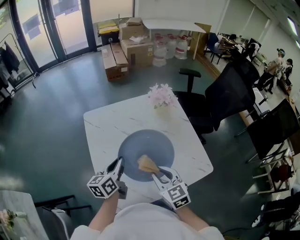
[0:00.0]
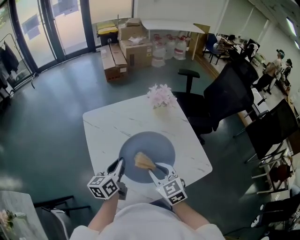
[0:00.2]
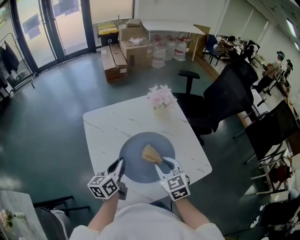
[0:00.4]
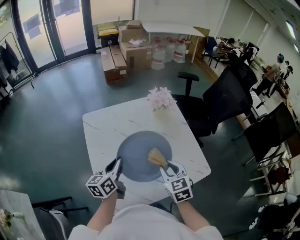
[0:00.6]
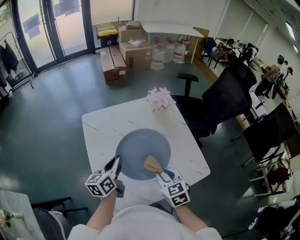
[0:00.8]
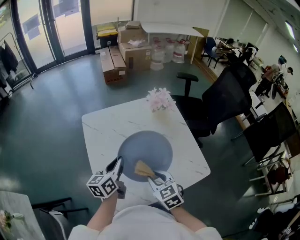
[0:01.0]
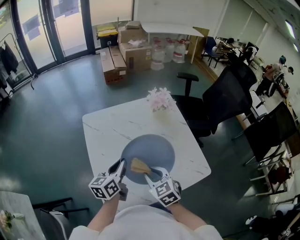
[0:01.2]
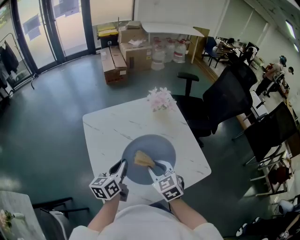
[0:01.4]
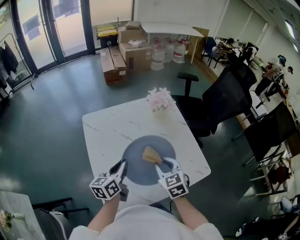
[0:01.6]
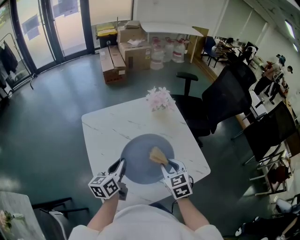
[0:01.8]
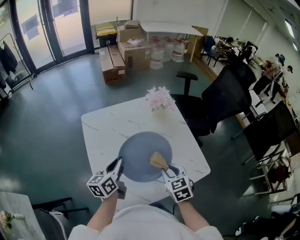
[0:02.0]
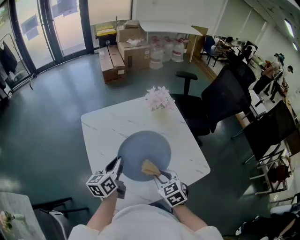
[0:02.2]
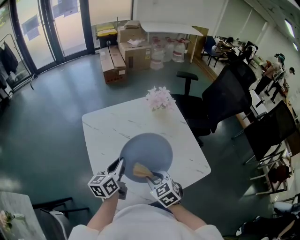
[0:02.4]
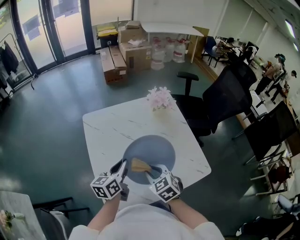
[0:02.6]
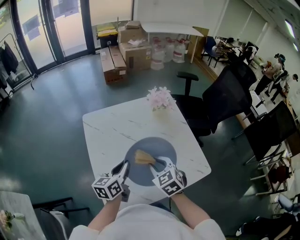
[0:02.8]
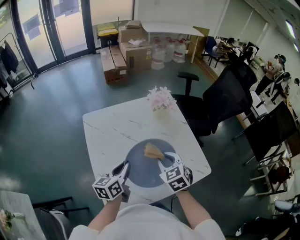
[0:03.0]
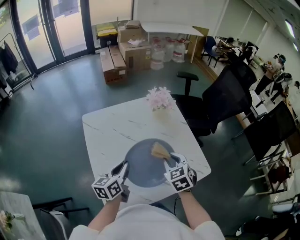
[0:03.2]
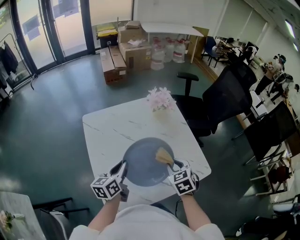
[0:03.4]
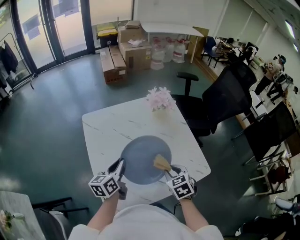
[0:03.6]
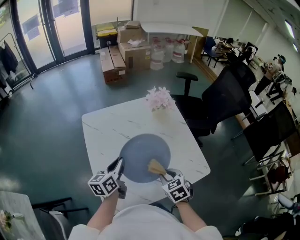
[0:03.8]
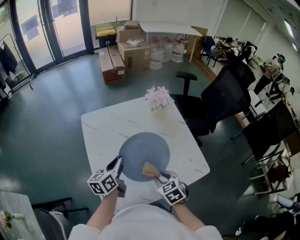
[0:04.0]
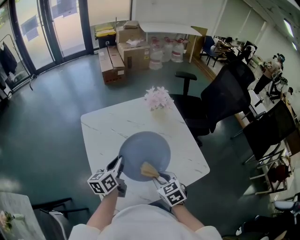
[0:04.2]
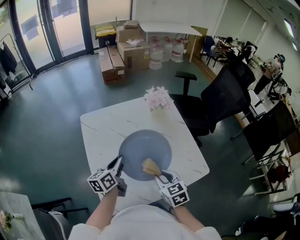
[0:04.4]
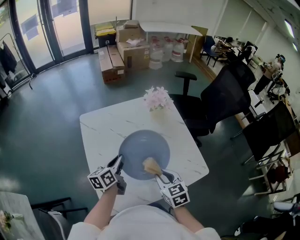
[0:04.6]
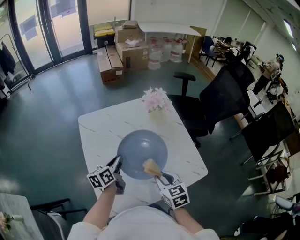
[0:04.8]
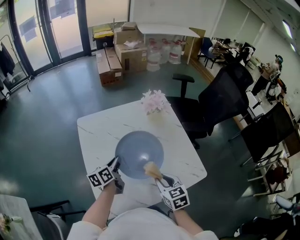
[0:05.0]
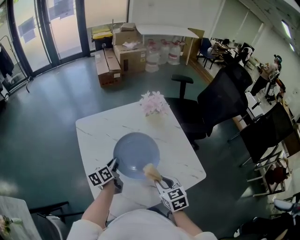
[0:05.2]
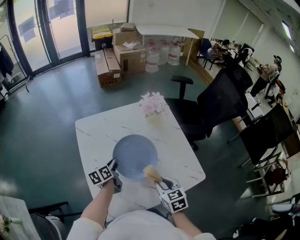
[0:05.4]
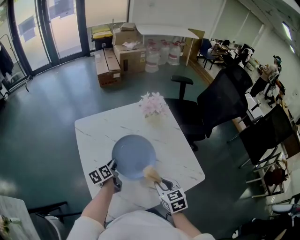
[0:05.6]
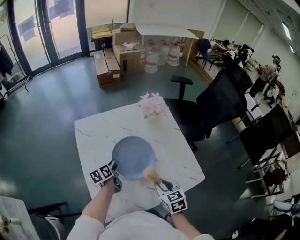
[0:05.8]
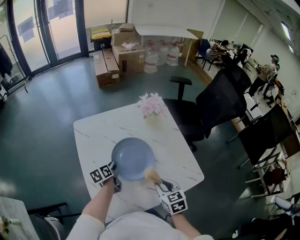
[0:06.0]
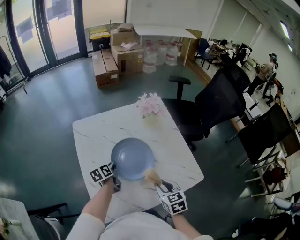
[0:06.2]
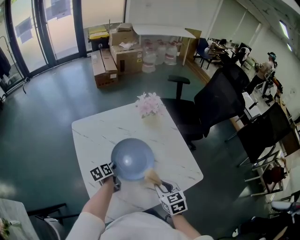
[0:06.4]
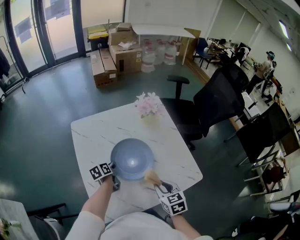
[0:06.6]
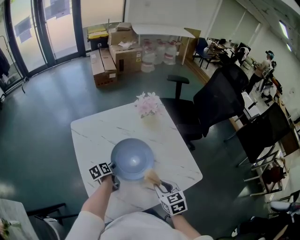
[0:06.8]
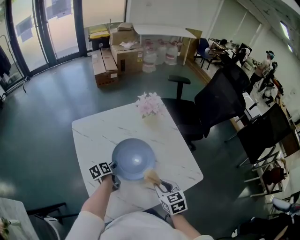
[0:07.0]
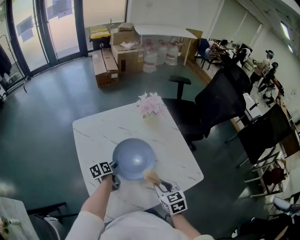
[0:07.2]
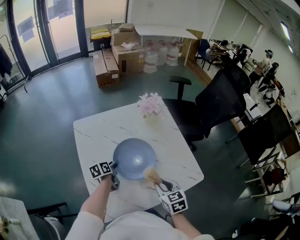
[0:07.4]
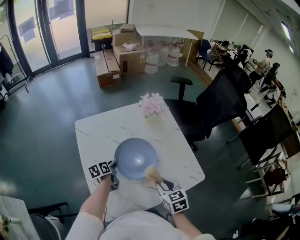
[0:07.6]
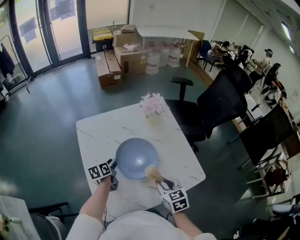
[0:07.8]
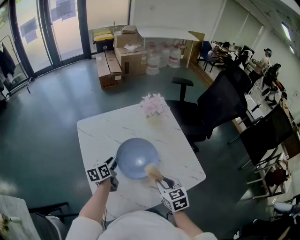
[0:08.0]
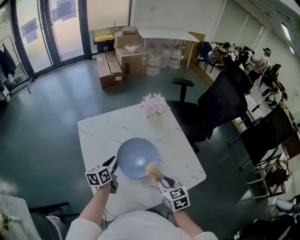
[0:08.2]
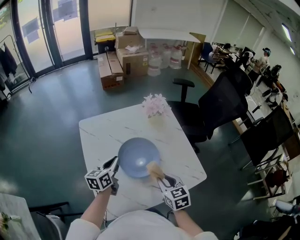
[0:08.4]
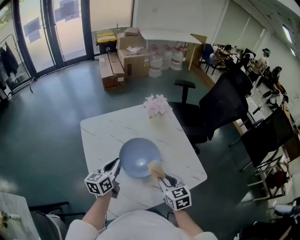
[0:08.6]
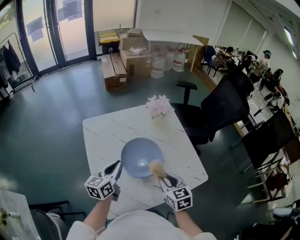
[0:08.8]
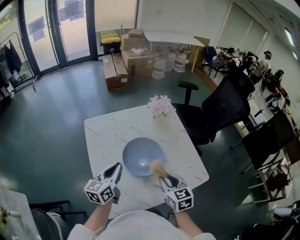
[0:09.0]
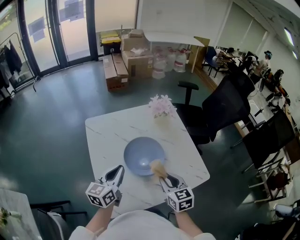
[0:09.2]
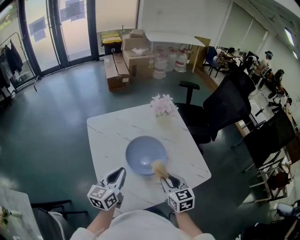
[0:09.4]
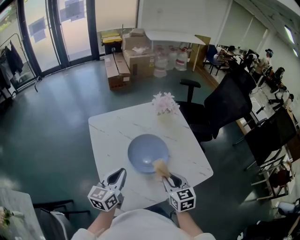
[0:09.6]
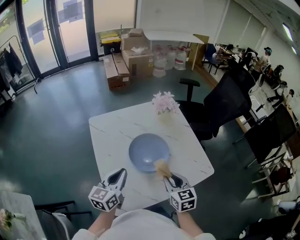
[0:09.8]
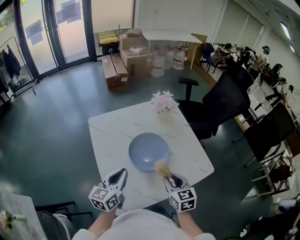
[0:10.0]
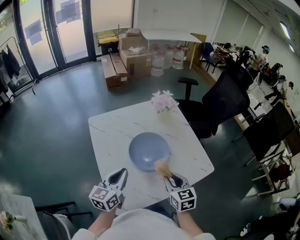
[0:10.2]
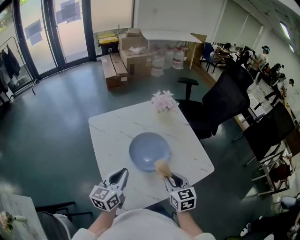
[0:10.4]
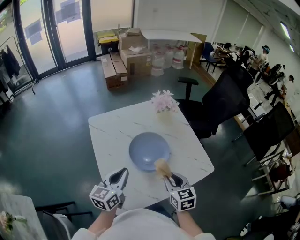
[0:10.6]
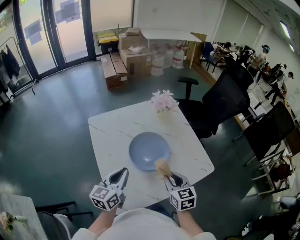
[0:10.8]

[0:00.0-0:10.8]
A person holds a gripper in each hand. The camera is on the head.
0:00.0 to 0:01.6: The right gripper goes left and right, some 5 cm each way, reversing 2 times.
0:01.6 to 0:03.0: The right gripper travels to the left and back again, roughly 5 cm each way.
0:03.0 to 0:04.6: The right gripper moves backward, approximately 5 cm. The left gripper changes place by approximately 5 cm.
0:04.6 to 0:06.2: The left gripper shifts roughly 15 cm downward, and changes its angle by approximately 20 degrees.
0:06.2 to 0:07.8: The left gripper opens.
0:07.8 to 0:09.2: The left gripper is displaced upward and backward by roughly 20 cm, rotates roughly 40 degrees, and closes, while the right gripper ends up roughly 5 cm from where it was.
0:09.2 to 0:10.8: The grippers stay close to where they were, moving slightly.

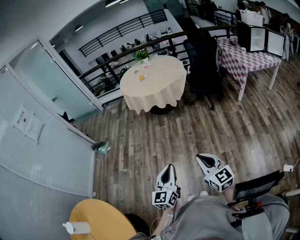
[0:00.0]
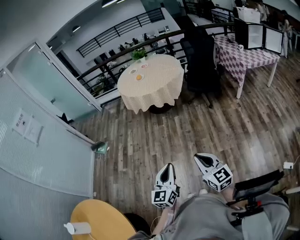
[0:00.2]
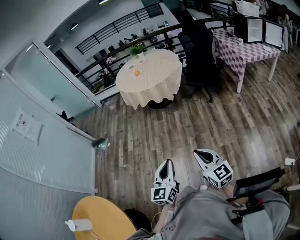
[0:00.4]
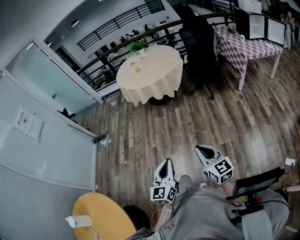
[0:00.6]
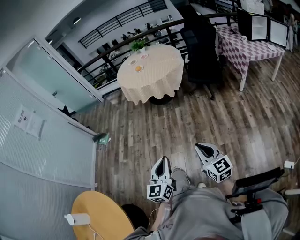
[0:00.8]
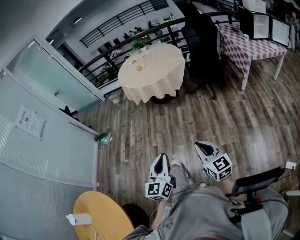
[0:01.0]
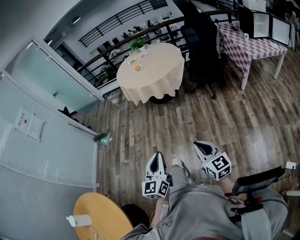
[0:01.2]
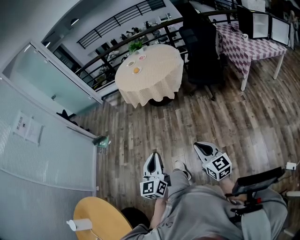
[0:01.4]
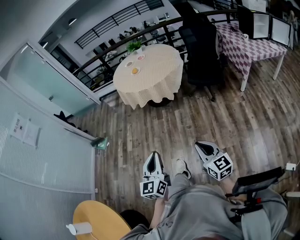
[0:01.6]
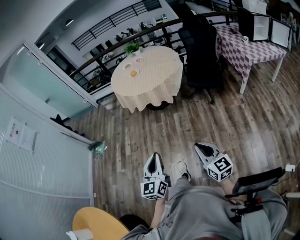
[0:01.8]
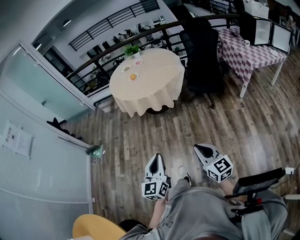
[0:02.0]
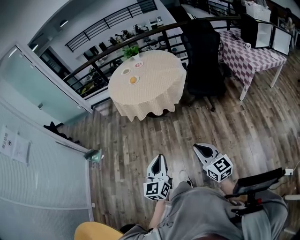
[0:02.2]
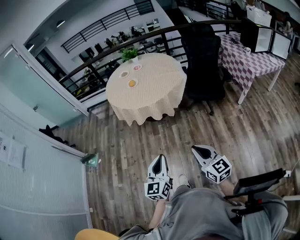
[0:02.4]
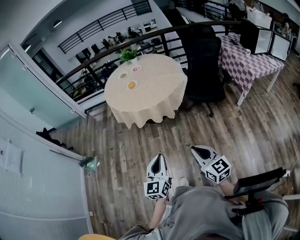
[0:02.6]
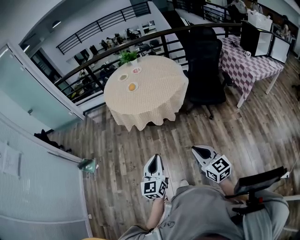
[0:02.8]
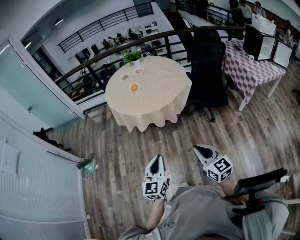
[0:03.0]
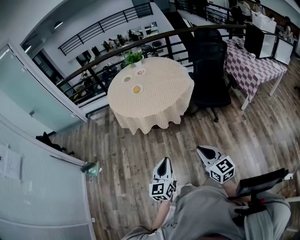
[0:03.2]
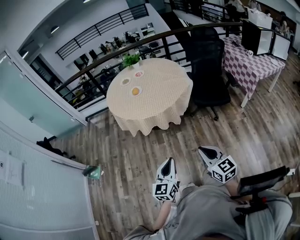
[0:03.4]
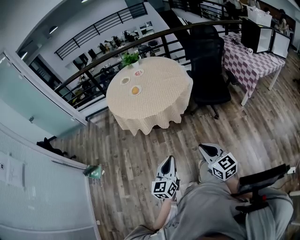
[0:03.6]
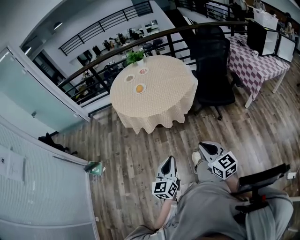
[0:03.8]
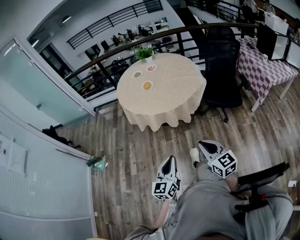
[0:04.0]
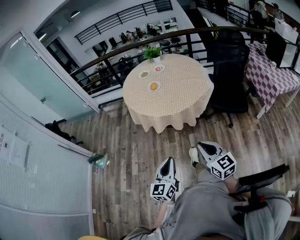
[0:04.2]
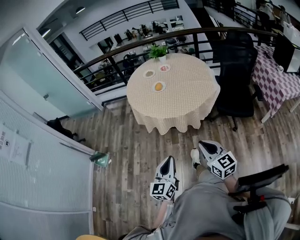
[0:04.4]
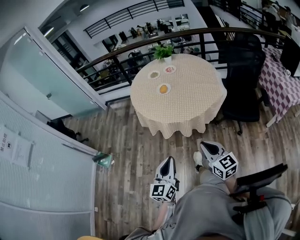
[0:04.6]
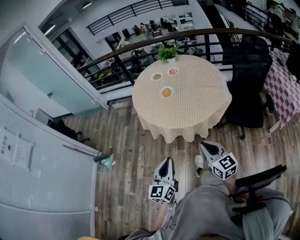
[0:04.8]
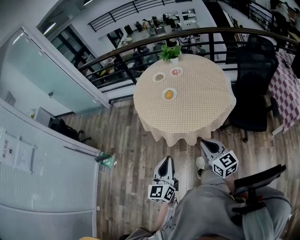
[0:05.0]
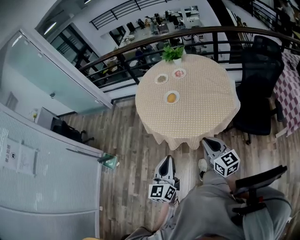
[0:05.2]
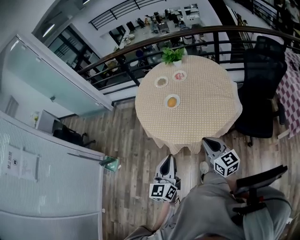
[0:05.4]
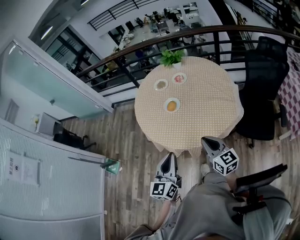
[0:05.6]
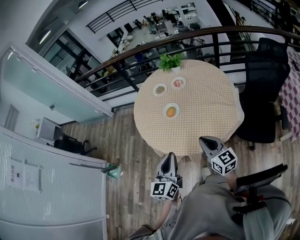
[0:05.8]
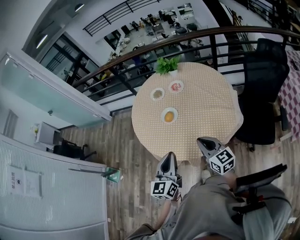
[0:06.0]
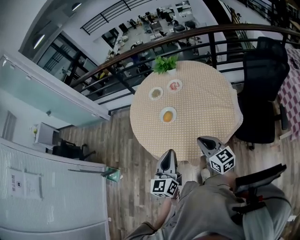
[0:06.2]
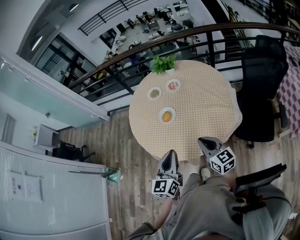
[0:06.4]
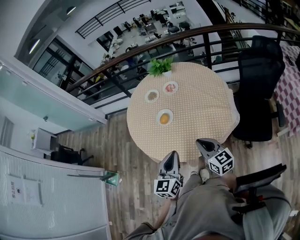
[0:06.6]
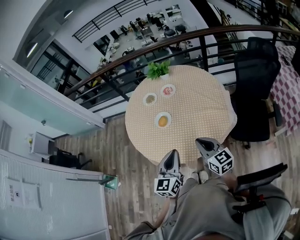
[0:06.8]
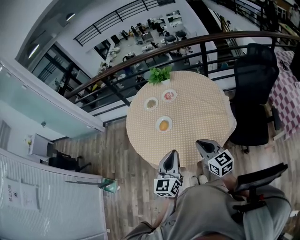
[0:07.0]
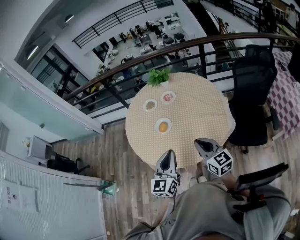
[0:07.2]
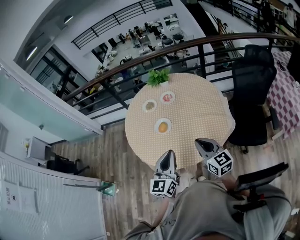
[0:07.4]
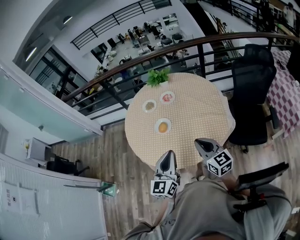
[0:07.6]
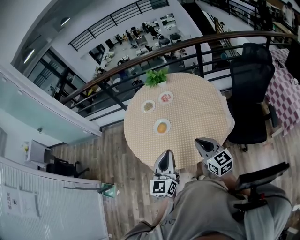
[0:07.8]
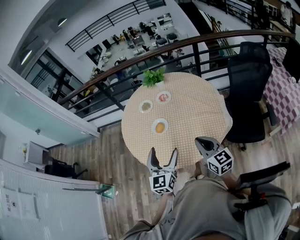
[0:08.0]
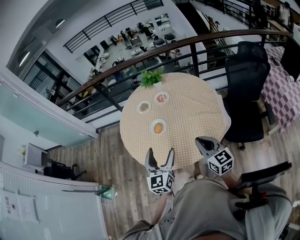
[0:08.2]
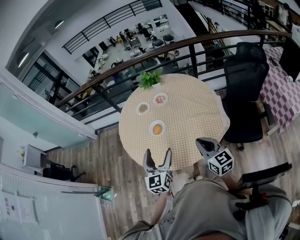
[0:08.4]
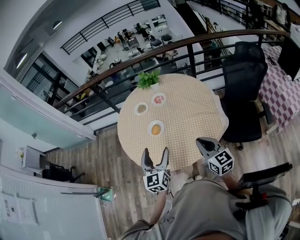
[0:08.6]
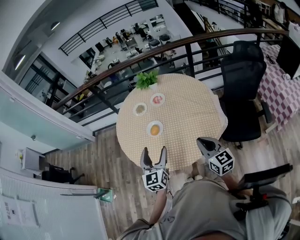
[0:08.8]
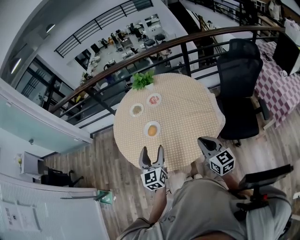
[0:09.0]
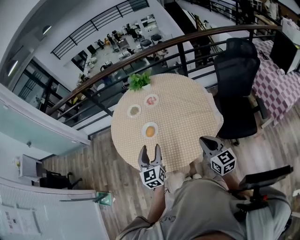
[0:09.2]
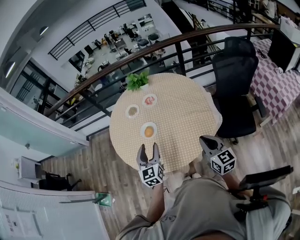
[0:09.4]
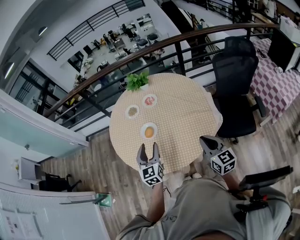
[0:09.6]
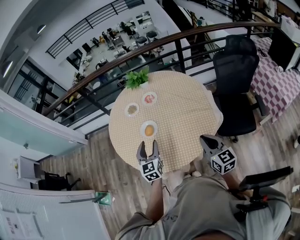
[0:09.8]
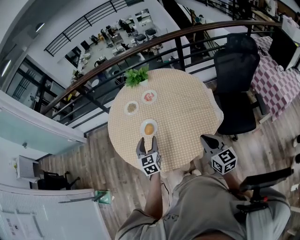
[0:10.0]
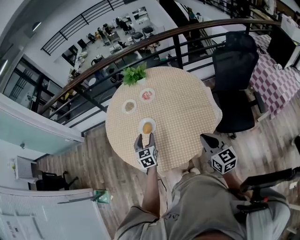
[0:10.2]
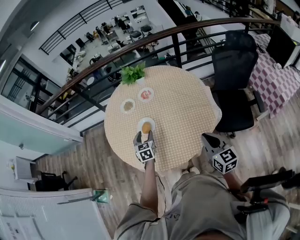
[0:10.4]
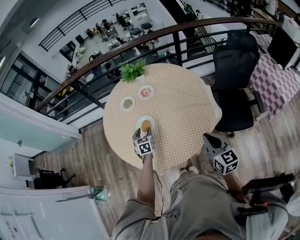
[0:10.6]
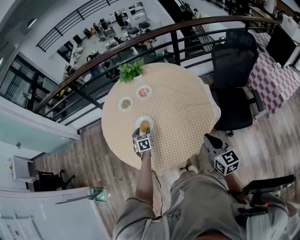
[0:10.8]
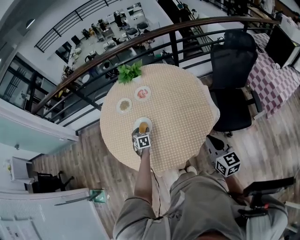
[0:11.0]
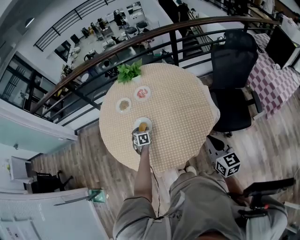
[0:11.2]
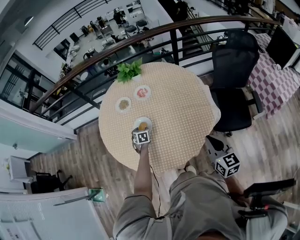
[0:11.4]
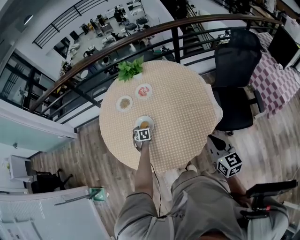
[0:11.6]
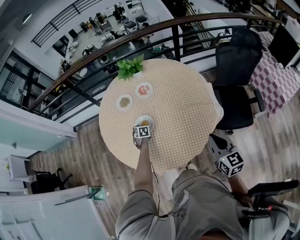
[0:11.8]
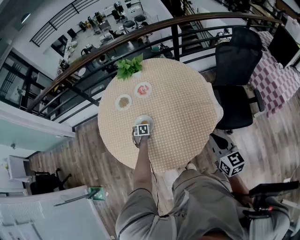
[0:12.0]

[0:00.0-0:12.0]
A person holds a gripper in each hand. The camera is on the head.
0:00.0 to 0:01.6: The right gripper moves forward and to the right, some 15 cm. The left gripper travels forward by about 15 cm.
0:01.6 to 0:03.0: The left gripper shifts roughly 35 cm forward, while the right gripper heads forward and to the left, covering about 35 cm.
0:03.0 to 0:04.4: The grippers both shift forward by some 15 cm.
0:04.4 to 0:06.0: The pair of grippers is taken forward, roughly 40 cm.
0:06.0 to 0:07.6: The left gripper moves some 5 cm.
0:07.6 to 0:09.0: The left gripper moves forward and downward, roughly 10 cm, and opens; the right gripper goes about 5 cm to the right.
0:09.0 to 0:10.4: The left gripper moves downward and forward, some 20 cm, and swivels some 30 degrees.
0:10.4 to 0:12.0: The left gripper goes some 25 cm downward and forward, and points its fingers some 30 degrees further downward.

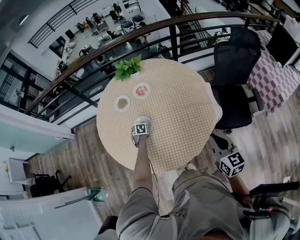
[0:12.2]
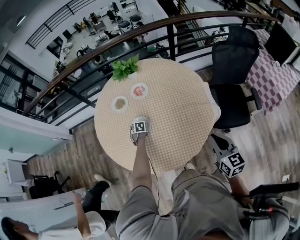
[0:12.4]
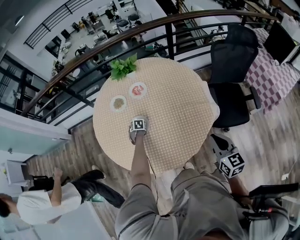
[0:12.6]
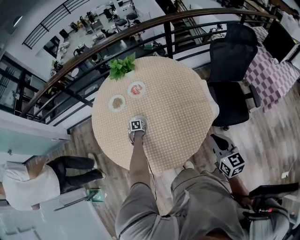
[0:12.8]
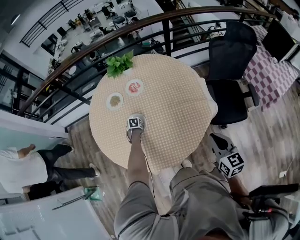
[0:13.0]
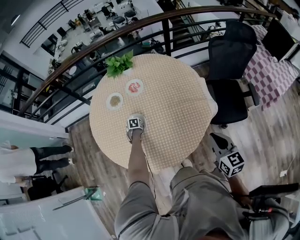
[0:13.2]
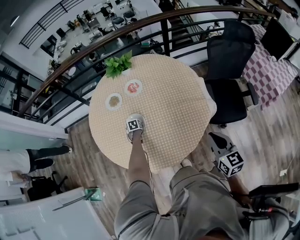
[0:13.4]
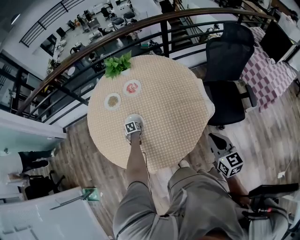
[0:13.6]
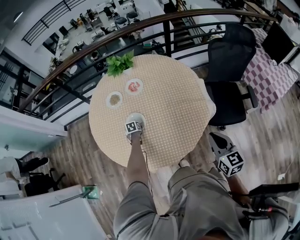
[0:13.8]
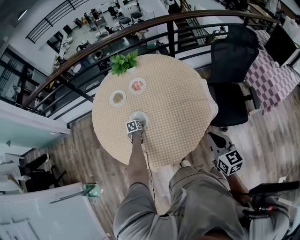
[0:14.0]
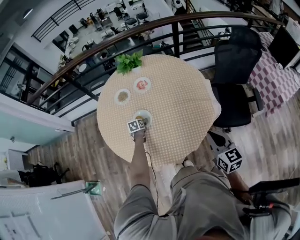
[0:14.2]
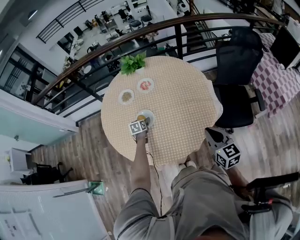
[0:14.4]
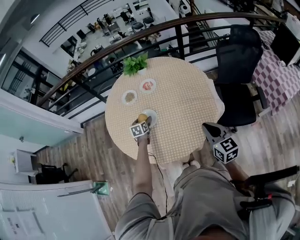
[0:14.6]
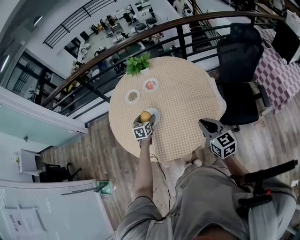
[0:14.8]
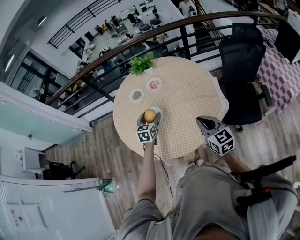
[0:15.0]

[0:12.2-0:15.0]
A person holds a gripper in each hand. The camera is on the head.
0:12.2 to 0:13.6: The grippers move only a little.
0:13.6 to 0:15.0: The right gripper heads to the left, covering approximately 10 cm, while the left gripper moves upward, some 30 cm, and tilts its fingers some 40 degrees upward.
